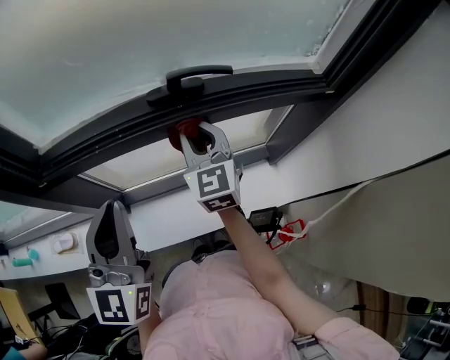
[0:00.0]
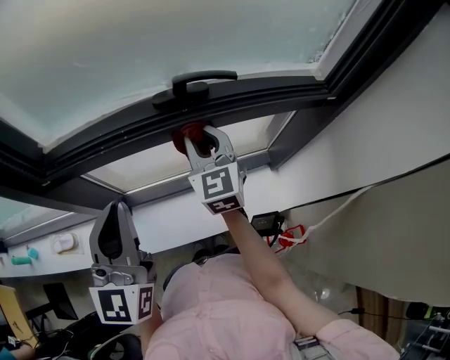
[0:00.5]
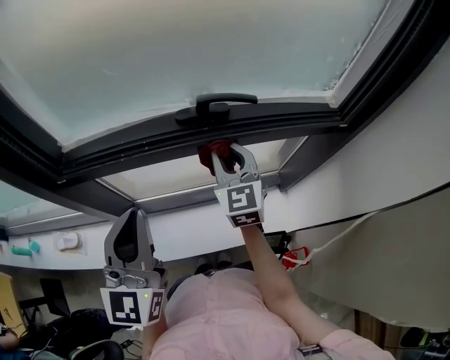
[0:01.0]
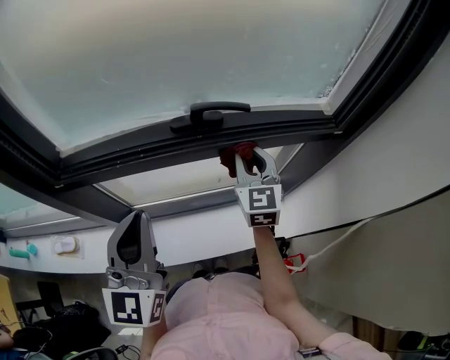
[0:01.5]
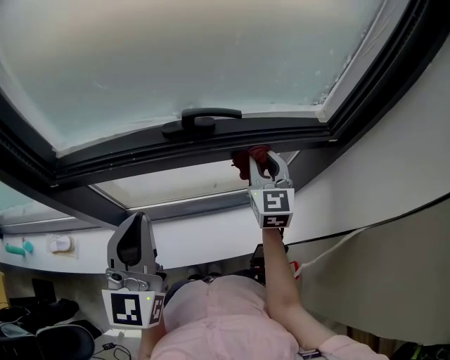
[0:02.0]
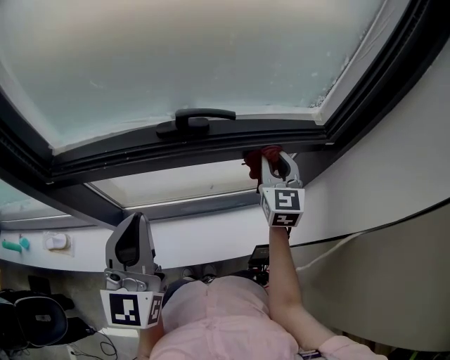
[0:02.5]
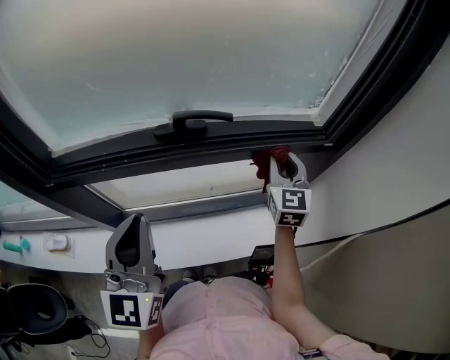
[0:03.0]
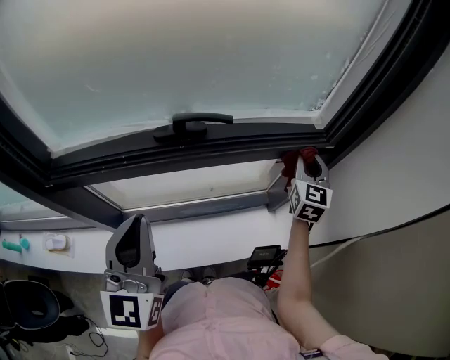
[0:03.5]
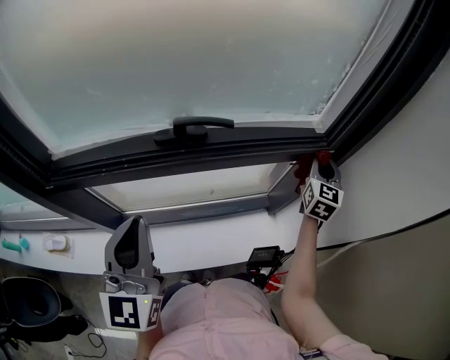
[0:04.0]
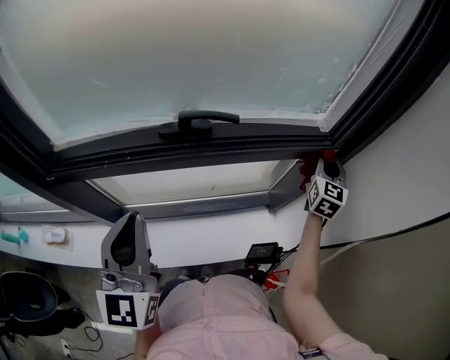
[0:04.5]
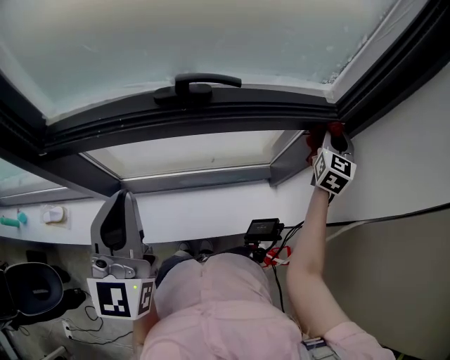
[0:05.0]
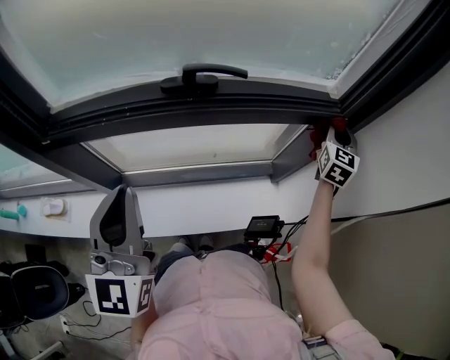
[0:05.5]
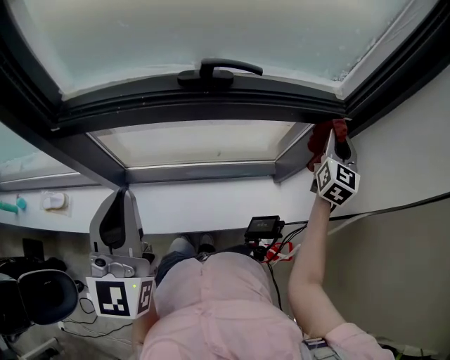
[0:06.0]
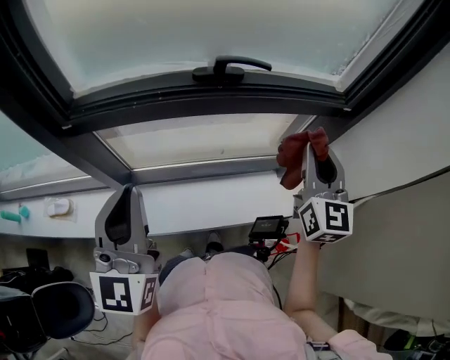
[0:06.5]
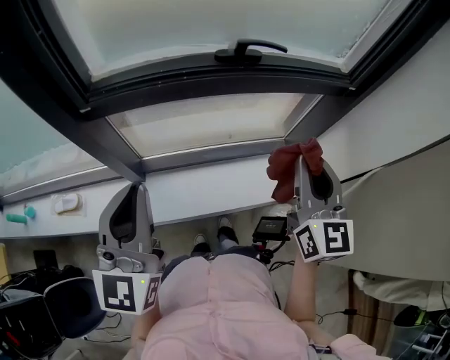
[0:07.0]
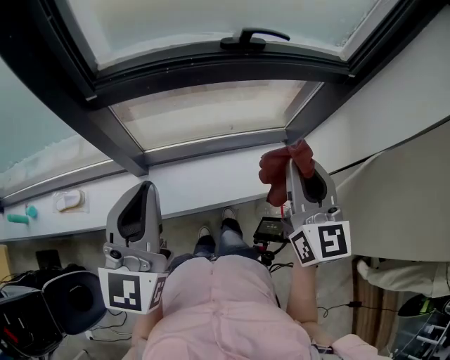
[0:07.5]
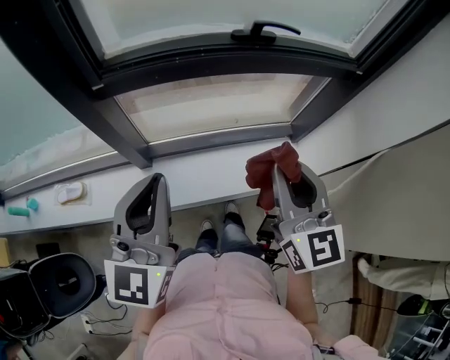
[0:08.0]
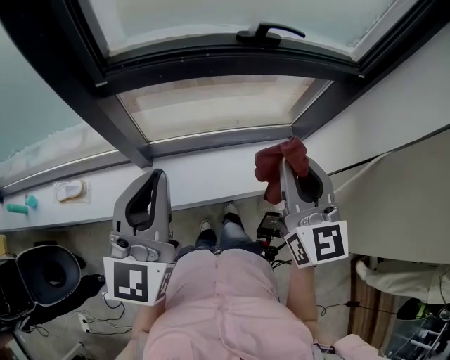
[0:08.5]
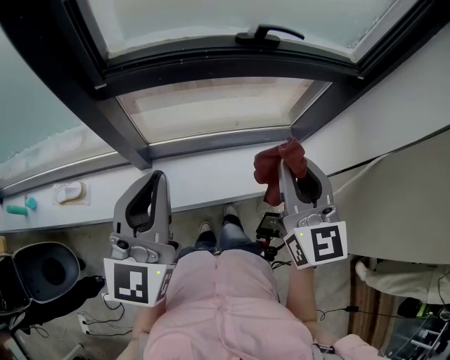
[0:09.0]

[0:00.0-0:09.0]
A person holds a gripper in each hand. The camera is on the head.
0:00.0 to 0:02.0: The right gripper shifts approximately 15 cm to the right.
0:02.0 to 0:04.5: The right gripper shifts approximately 25 cm to the right, and turns by about 20 degrees.
0:04.5 to 0:07.0: The right gripper is displaced backward and to the left by about 40 cm, and rotates roughly 20 degrees, while the left gripper goes approximately 20 cm backward and to the left.
0:07.0 to 0:09.0: The right gripper shifts approximately 10 cm to the left and backward.

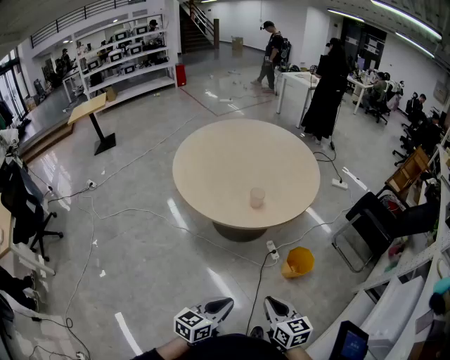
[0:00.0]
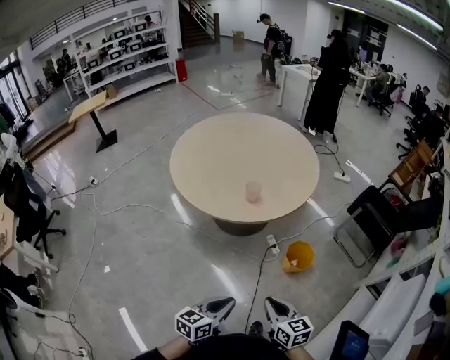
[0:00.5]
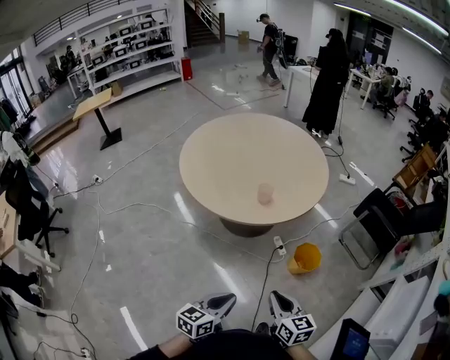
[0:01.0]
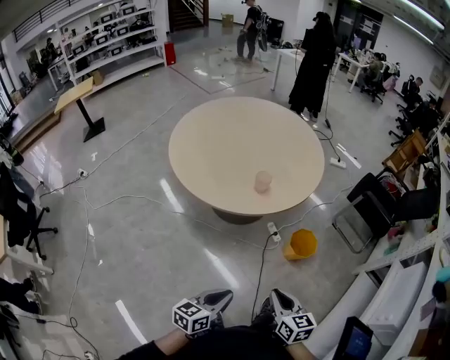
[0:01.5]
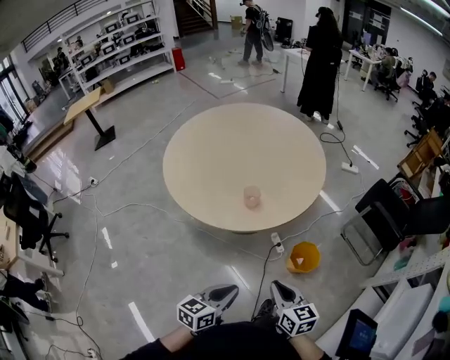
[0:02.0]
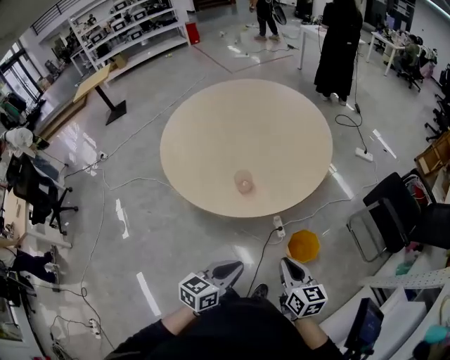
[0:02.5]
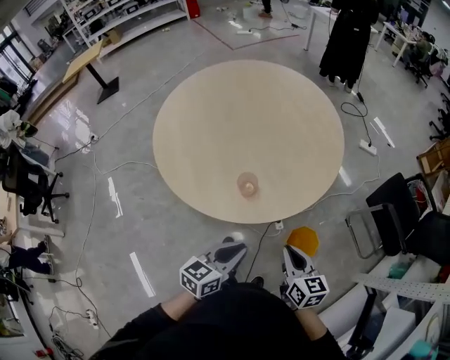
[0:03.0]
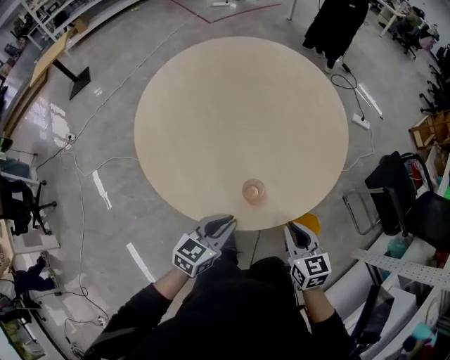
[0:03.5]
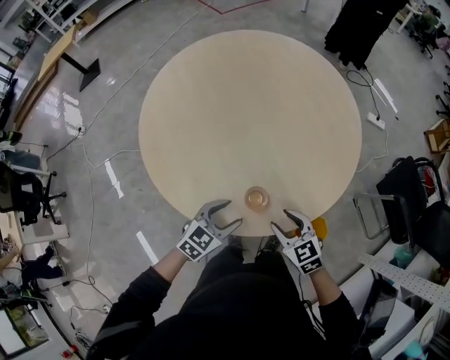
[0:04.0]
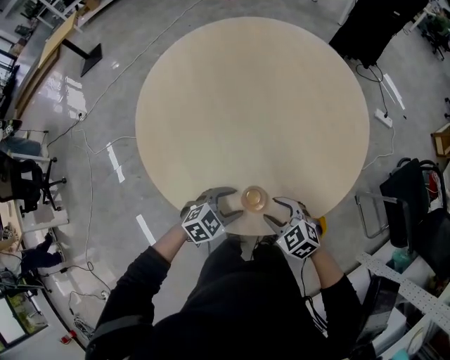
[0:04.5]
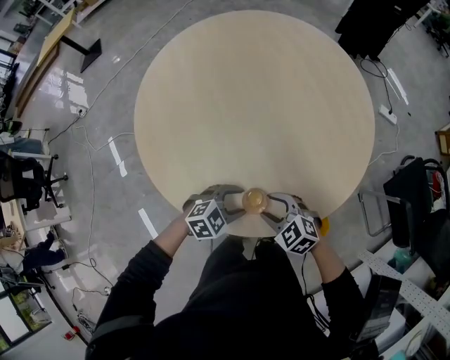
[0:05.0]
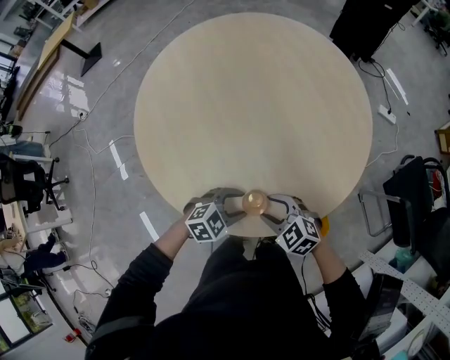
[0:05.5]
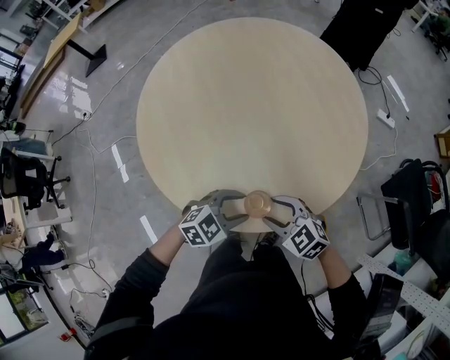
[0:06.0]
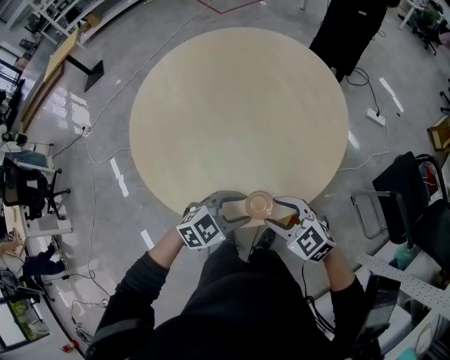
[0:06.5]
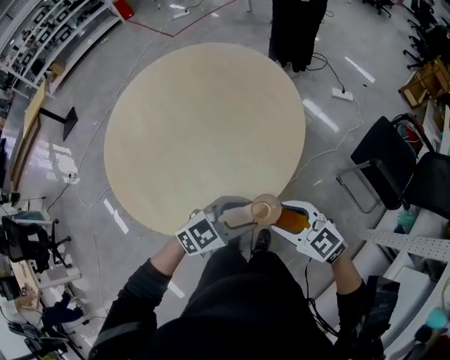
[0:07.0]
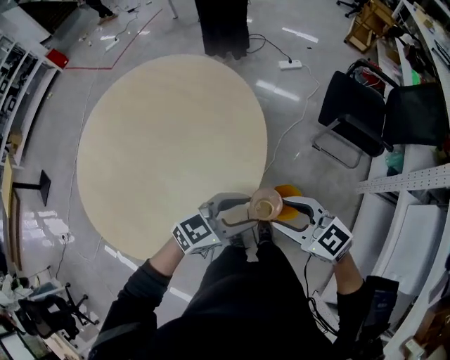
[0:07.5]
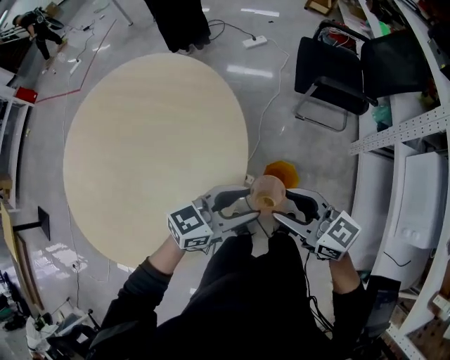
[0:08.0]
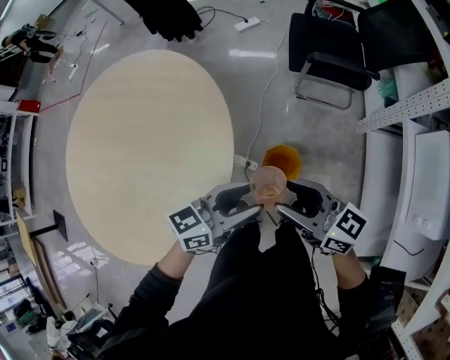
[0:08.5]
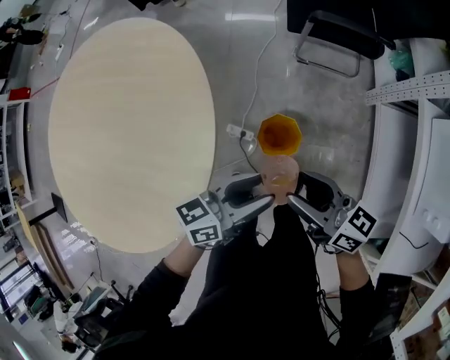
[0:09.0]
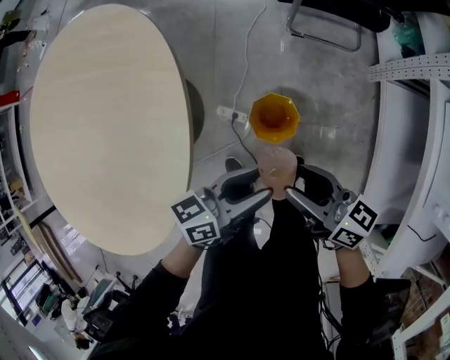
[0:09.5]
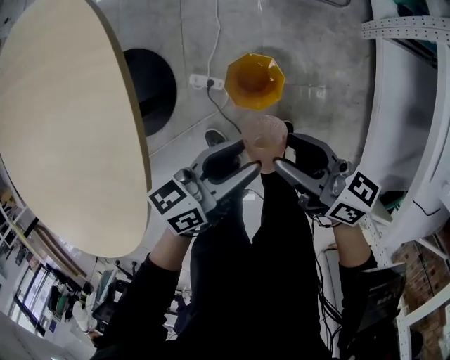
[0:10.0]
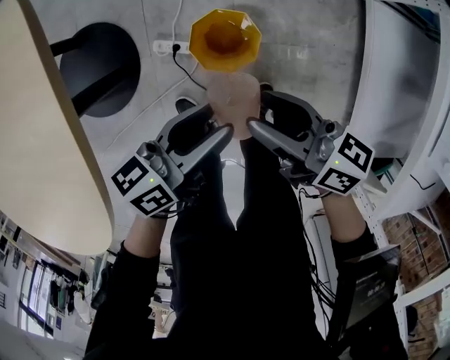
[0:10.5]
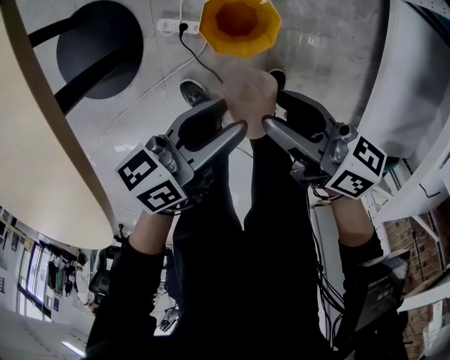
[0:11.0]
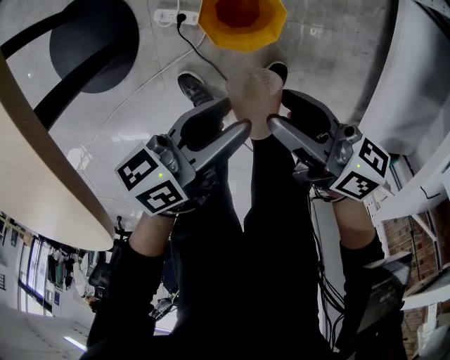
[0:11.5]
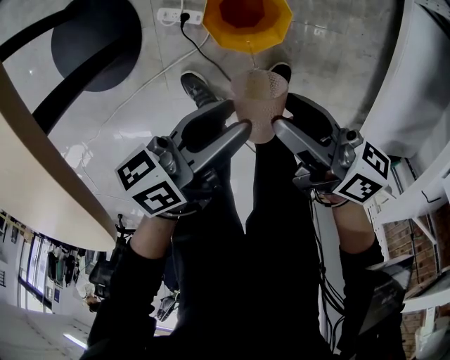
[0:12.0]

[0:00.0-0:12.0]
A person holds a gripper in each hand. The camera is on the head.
0:00.0 to 0:02.0: Both grippers move forward and to the right, roughly 15 cm.
0:02.0 to 0:04.0: The grippers both shift forward by about 35 cm. The left gripper swivels about 30 degrees, and opens its fingers; the right gripper swivels about 40 degrees, and opens its fingers.
0:04.0 to 0:06.0: The right gripper swivels about 30 degrees. Meanwhile the left gripper shifts by about 5 cm.
0:06.0 to 0:08.0: The right gripper shifts by approximately 30 cm, and changes its angle by about 70 degrees. The left gripper ends up about 30 cm from where it was, and tilts its fingers roughly 30 degrees upward.
0:08.0 to 0:10.0: Both grippers move downward, some 30 cm. The left gripper rotates approximately 30 degrees; the right gripper changes its angle by approximately 40 degrees.
0:10.0 to 0:12.0: Both grippers move downward, roughly 15 cm. The right gripper changes its angle by some 20 degrees; the left gripper changes its angle by about 20 degrees.

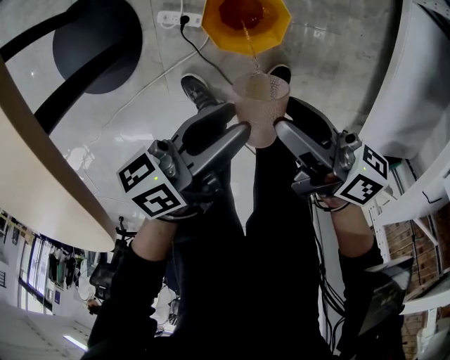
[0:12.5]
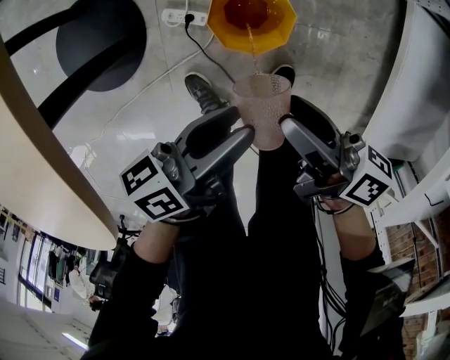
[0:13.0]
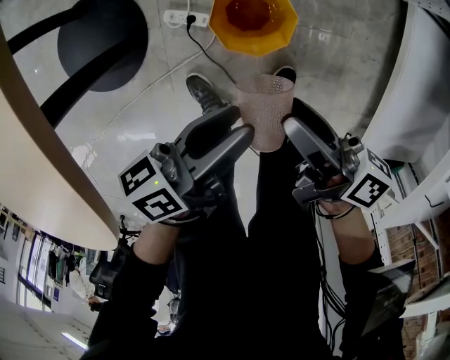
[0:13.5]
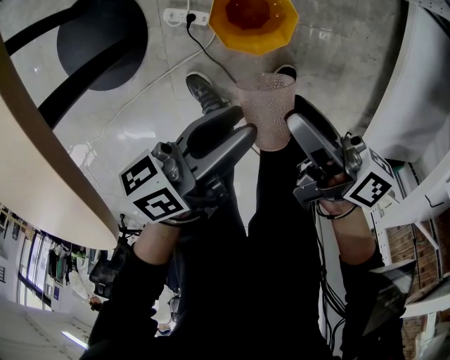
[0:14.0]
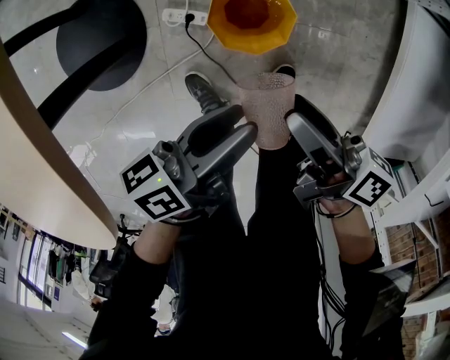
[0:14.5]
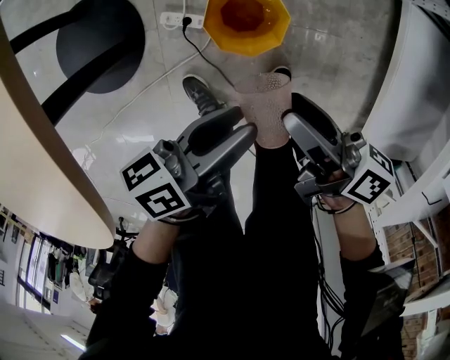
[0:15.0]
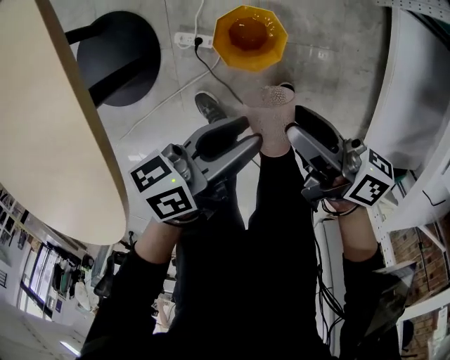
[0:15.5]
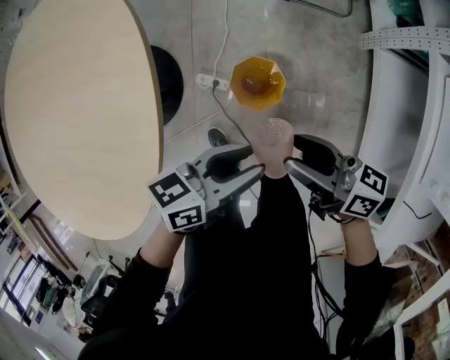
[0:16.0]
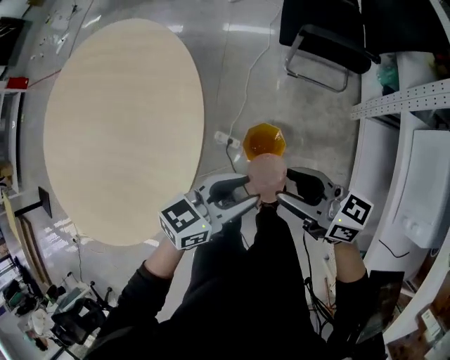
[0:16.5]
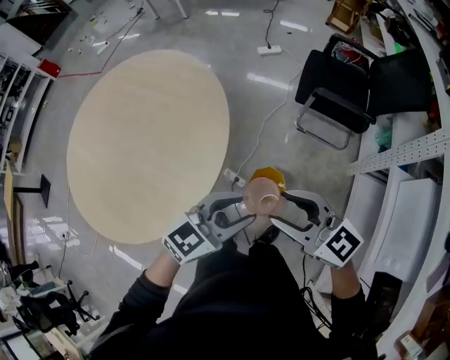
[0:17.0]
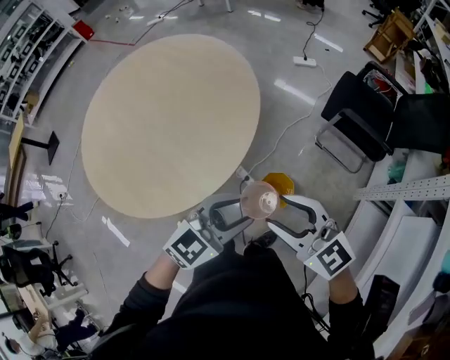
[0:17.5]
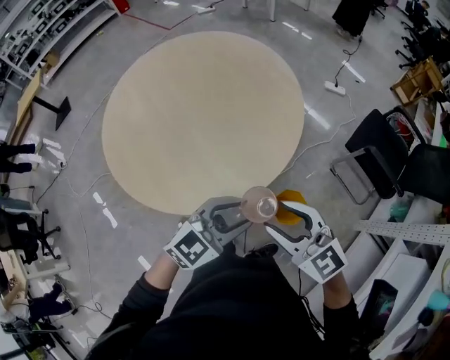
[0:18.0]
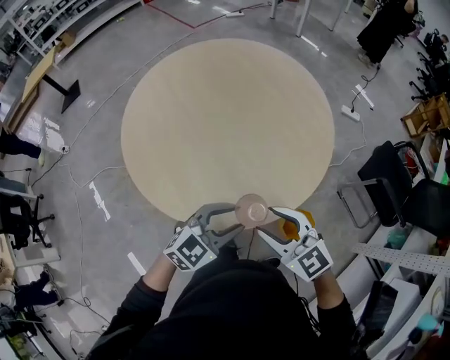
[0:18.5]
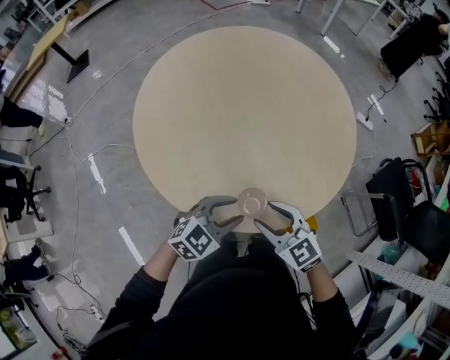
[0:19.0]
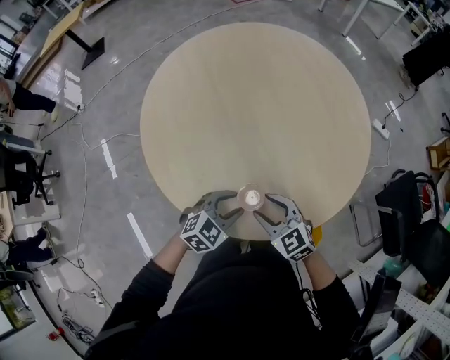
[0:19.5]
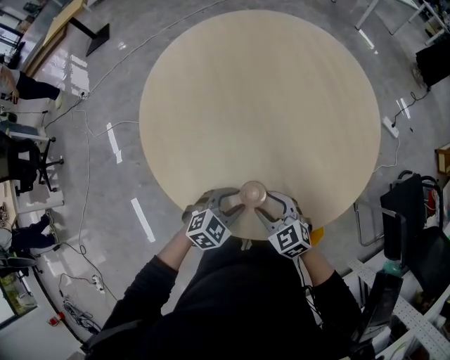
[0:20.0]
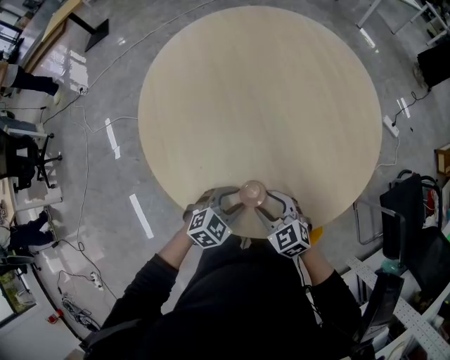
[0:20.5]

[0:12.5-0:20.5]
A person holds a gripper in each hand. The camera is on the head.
0:12.5 to 0:14.5: The grippers make only small movements.
0:14.5 to 0:16.5: The grippers both shift upward by approximately 35 cm. The right gripper rotates around the line of its fingers by about 50 degrees, counterclockwise from behind. The left gripper rolls clockwise, seen from behind, by roughly 50 degrees.
0:16.5 to 0:18.5: The right gripper moves approximately 40 cm, and rolls counterclockwise, seen from behind, by roughly 50 degrees. The left gripper ends up approximately 35 cm from where it was, and rotates some 50 degrees.
0:18.5 to 0:20.5: Both grippers move downward and forward, roughly 20 cm. The left gripper changes its angle by approximately 30 degrees; the right gripper swivels some 20 degrees.
